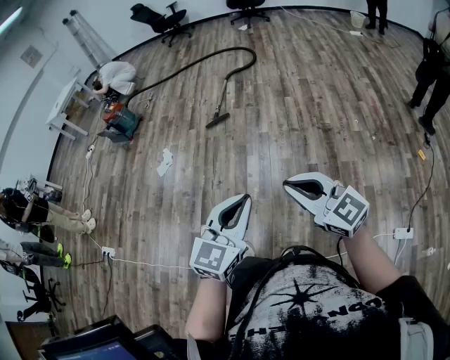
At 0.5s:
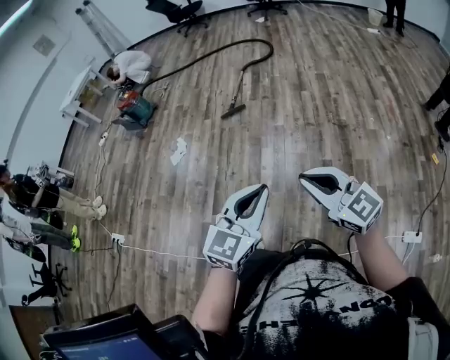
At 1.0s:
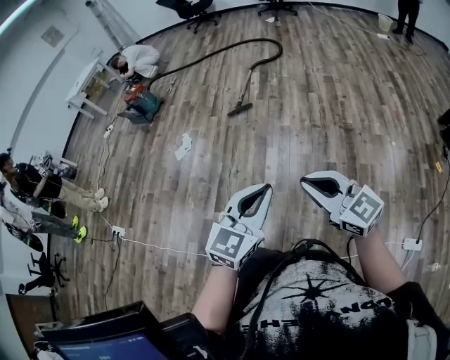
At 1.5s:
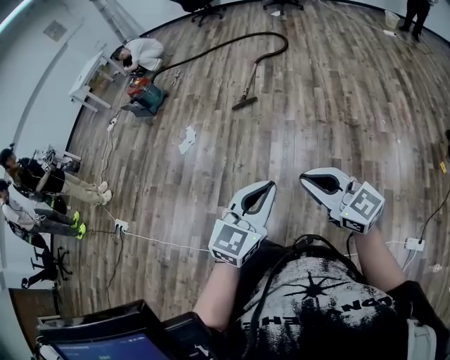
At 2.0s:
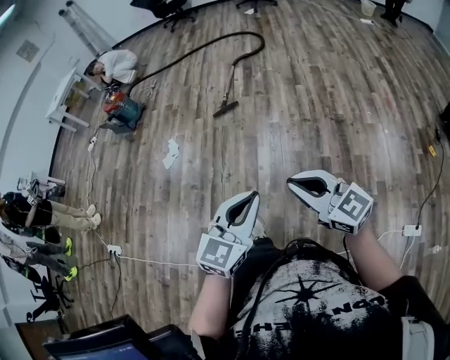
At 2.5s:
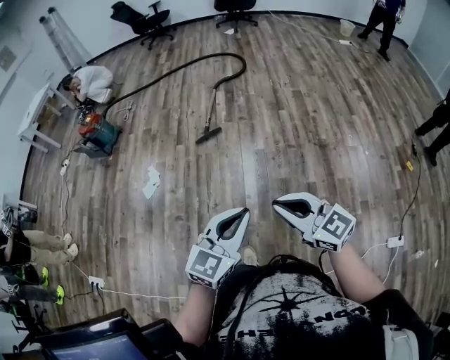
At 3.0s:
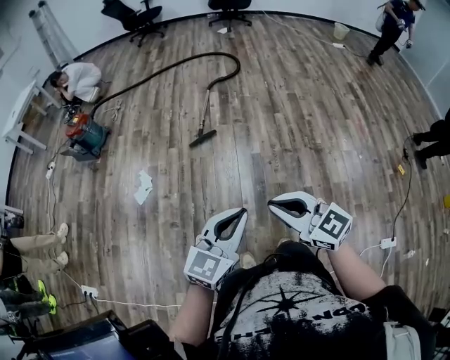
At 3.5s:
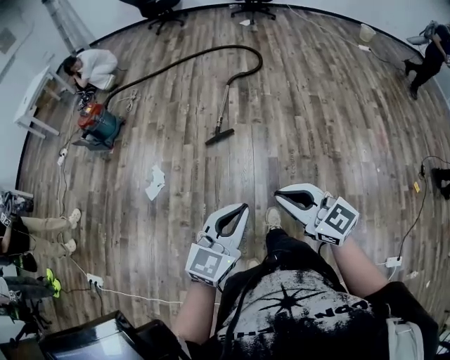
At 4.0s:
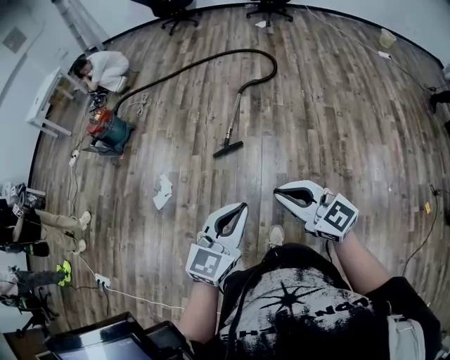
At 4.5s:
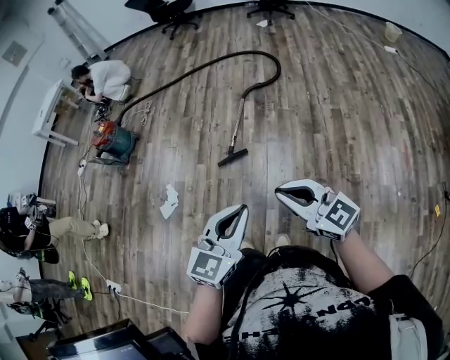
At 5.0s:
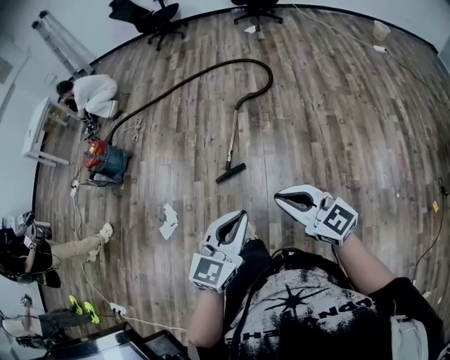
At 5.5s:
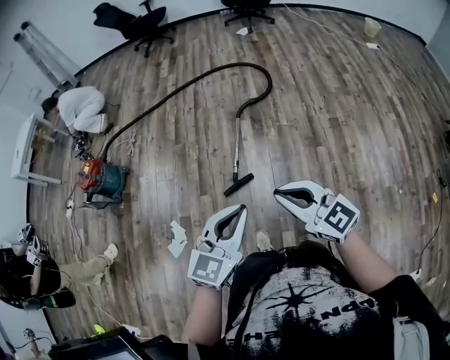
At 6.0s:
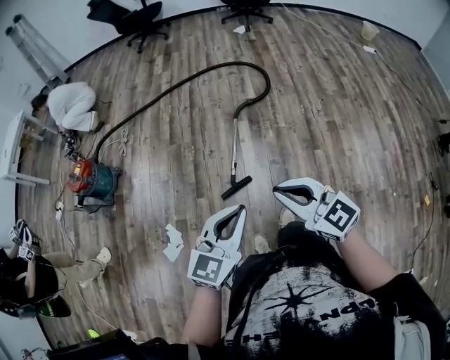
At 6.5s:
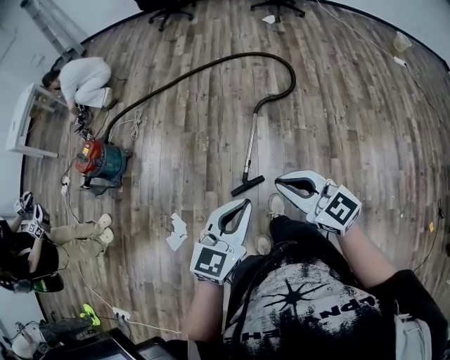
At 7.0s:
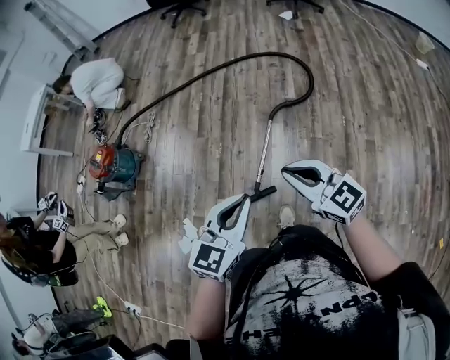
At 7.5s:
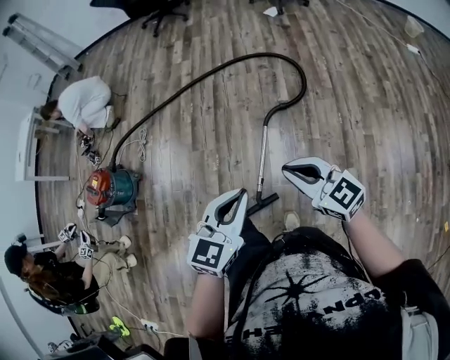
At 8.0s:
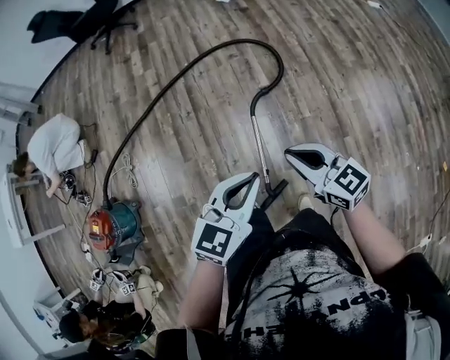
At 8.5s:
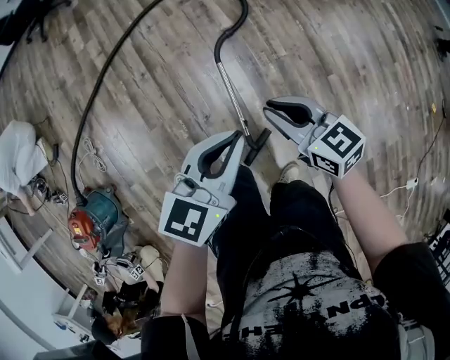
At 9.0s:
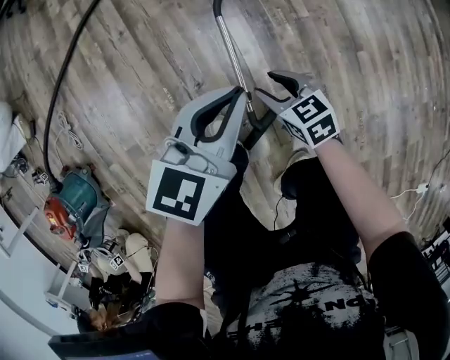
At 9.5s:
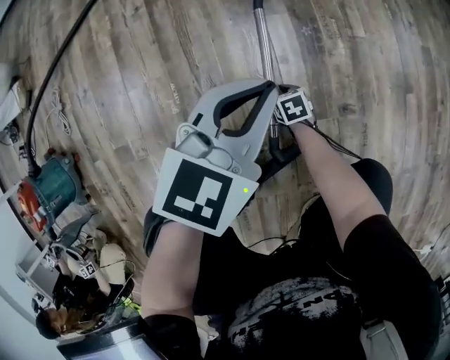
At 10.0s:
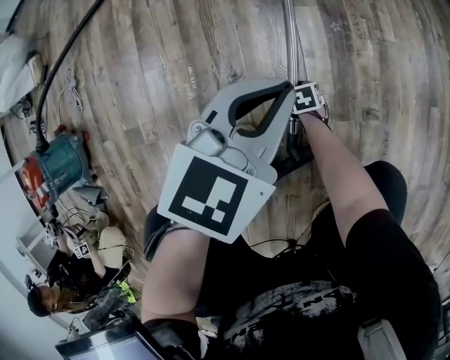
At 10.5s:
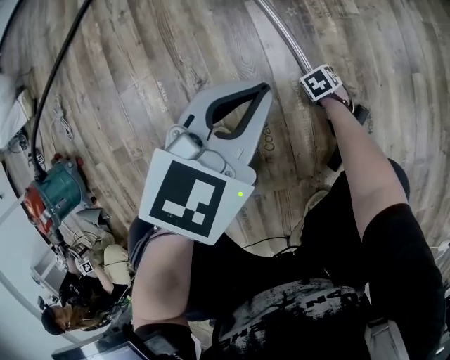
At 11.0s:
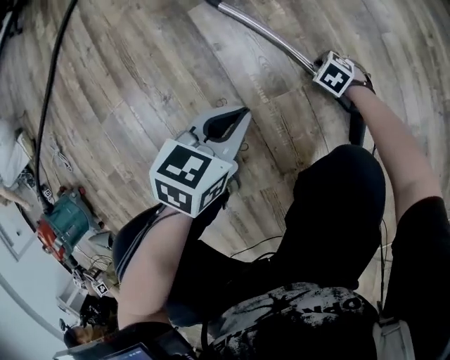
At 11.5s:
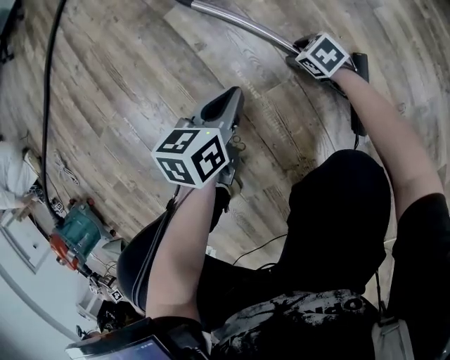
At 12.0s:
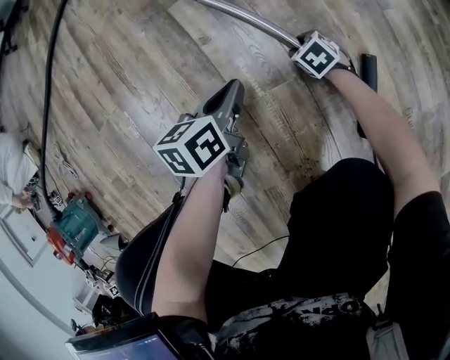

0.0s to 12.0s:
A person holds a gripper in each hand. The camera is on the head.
0.0s to 2.0s: Both grippers travel together forward, some 10 cm.
2.0s to 4.0s: The two grippers travel together, forward, about 50 cm.
4.0s to 6.0s: The grippers both shift forward by approximately 35 cm.
6.0s to 8.0s: The two grippers travel together, some 40 cm. The right gripper turns by about 20 degrees.
8.0s to 10.0s: The right gripper moves downward, about 90 cm, points its fingers roughly 50 degrees further downward, and opens up, while the left gripper travels downward by some 50 cm.
10.0s to 12.0s: The left gripper shifts roughly 20 cm downward, and swivels about 40 degrees. Meanwhile the right gripper moves roughly 25 cm, and closes, then reopens.

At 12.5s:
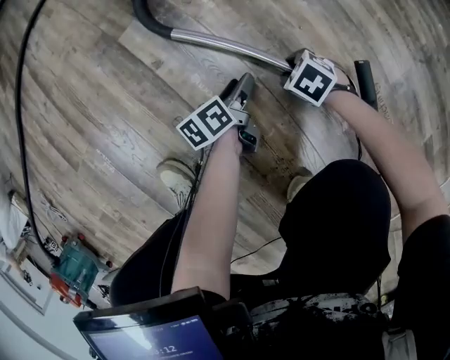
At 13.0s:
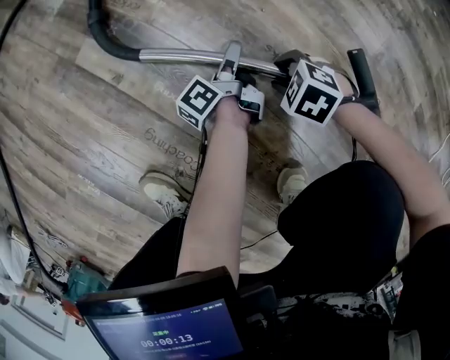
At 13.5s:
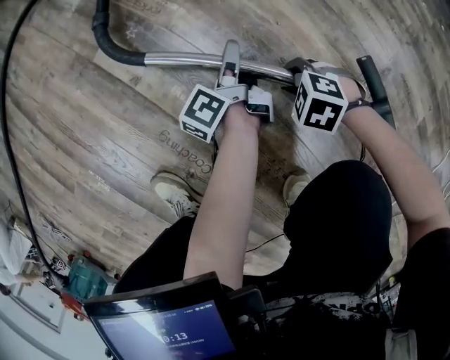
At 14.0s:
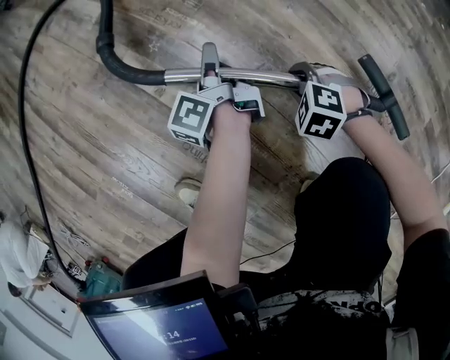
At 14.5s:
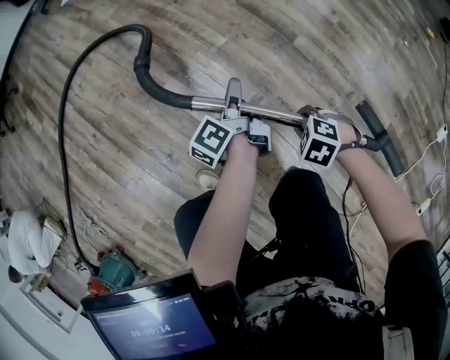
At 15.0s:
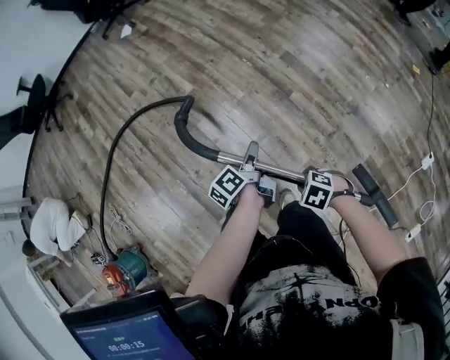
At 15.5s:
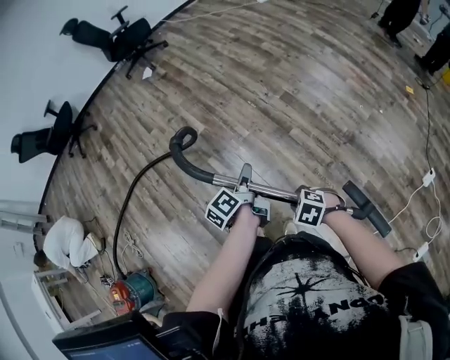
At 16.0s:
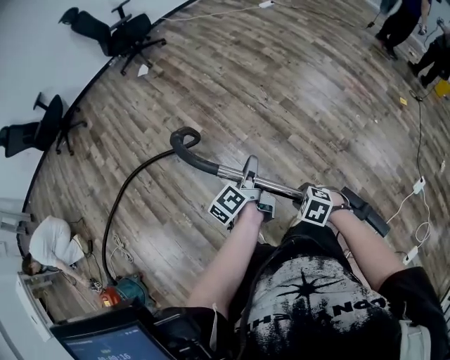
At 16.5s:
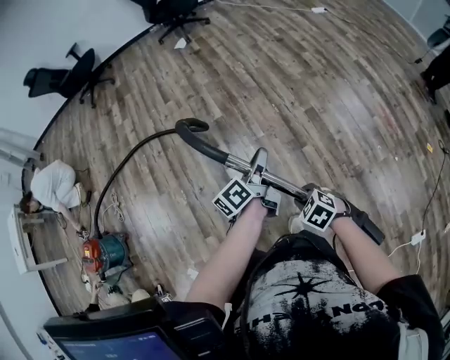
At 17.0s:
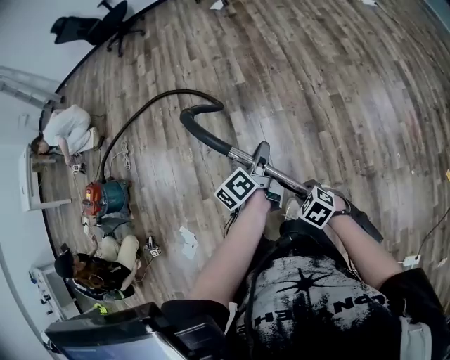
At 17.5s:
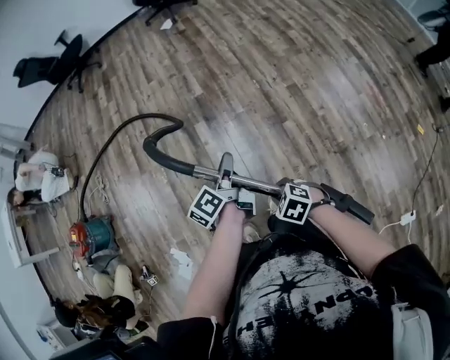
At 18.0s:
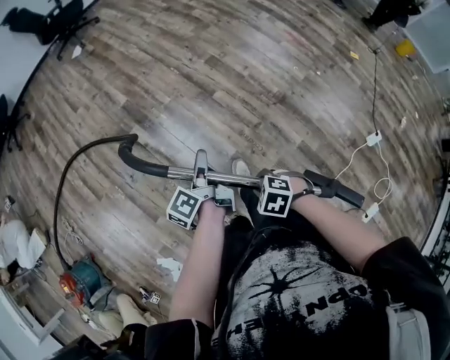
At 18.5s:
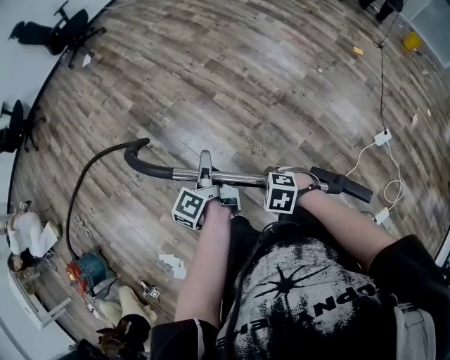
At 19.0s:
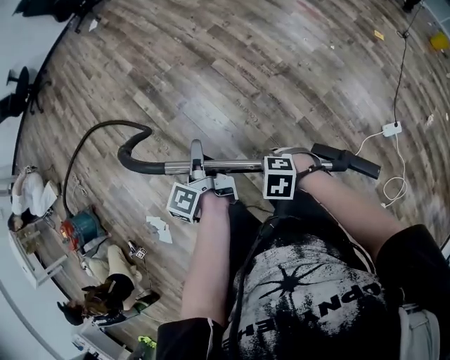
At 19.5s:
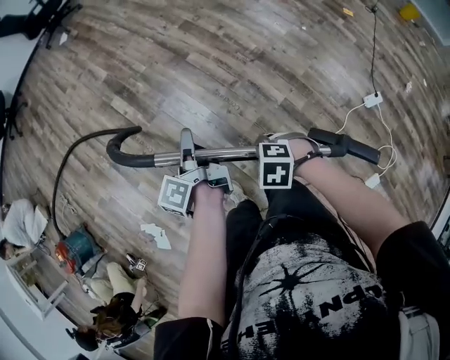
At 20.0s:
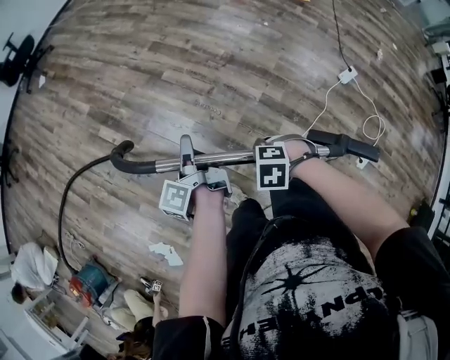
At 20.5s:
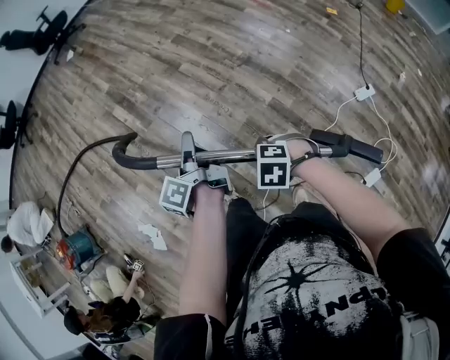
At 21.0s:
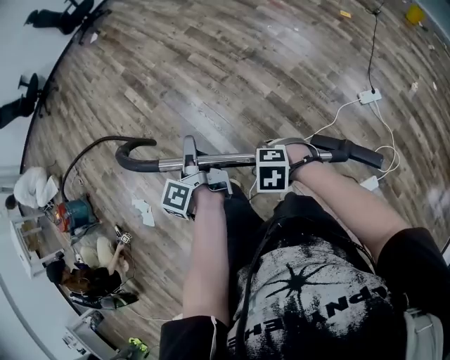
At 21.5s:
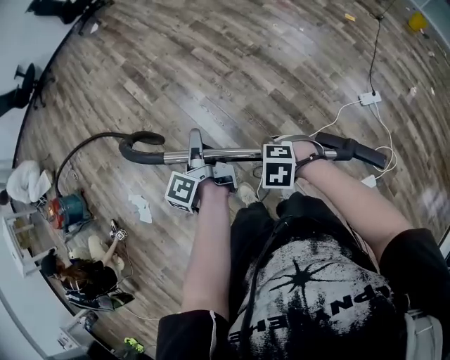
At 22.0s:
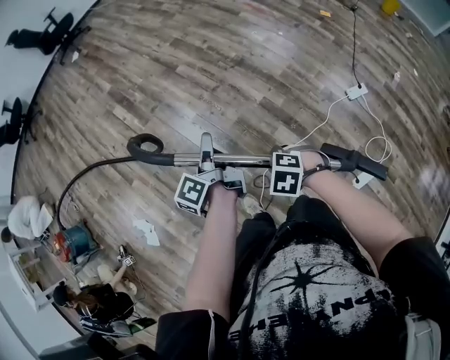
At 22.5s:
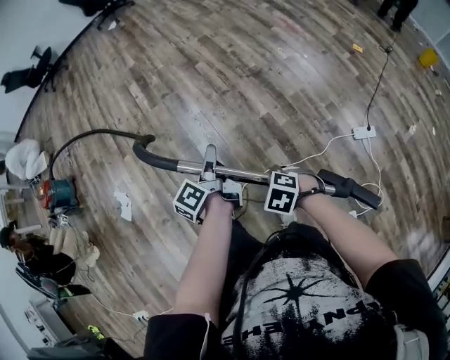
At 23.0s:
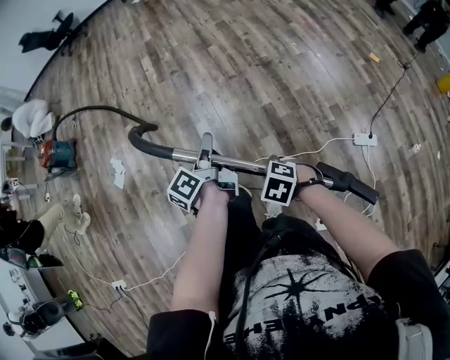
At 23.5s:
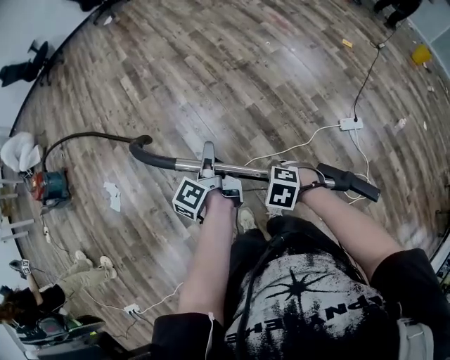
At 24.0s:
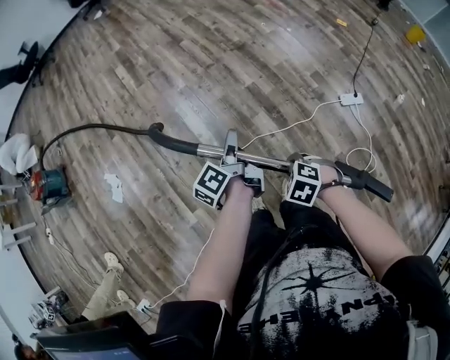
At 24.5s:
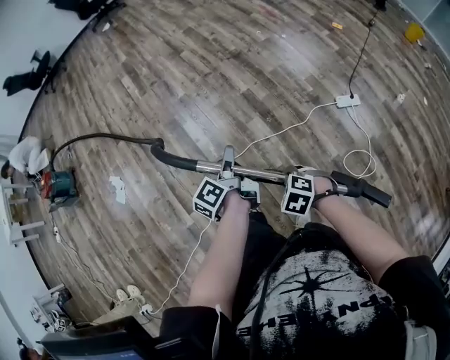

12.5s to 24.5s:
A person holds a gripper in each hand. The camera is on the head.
12.5s to 14.5s: Both grippers travel together upward, approximately 35 cm. The right gripper closes up, while the left gripper turns by approximately 30 degrees, and closes its fingers.
14.5s to 16.5s: The grippers both shift upward by roughly 40 cm.
16.5s to 18.5s: The right gripper ends up roughly 35 cm from where it was, while the left gripper ends up about 35 cm from where it was.
18.5s to 20.5s: The right gripper shifts by some 25 cm, while the left gripper shifts by approximately 25 cm.
20.5s to 22.5s: The left gripper ends up approximately 25 cm from where it was. The right gripper moves roughly 25 cm.
22.5s to 24.5s: The right gripper moves about 30 cm. Meanwhile the left gripper shifts by approximately 30 cm.

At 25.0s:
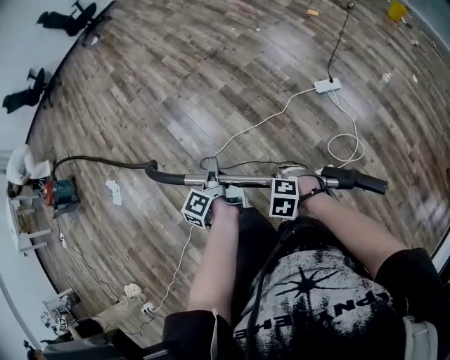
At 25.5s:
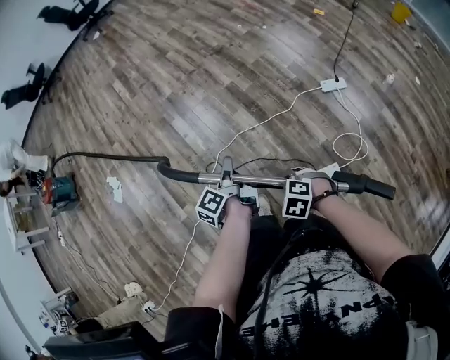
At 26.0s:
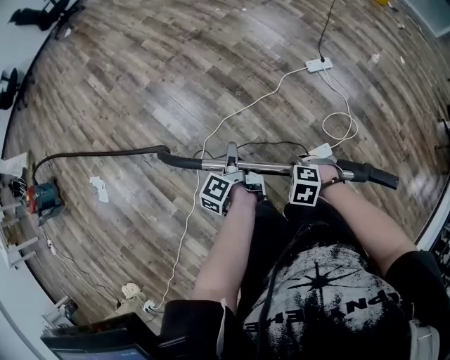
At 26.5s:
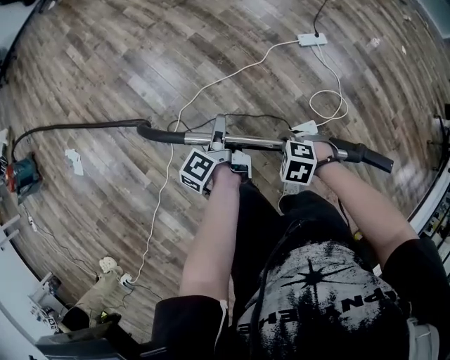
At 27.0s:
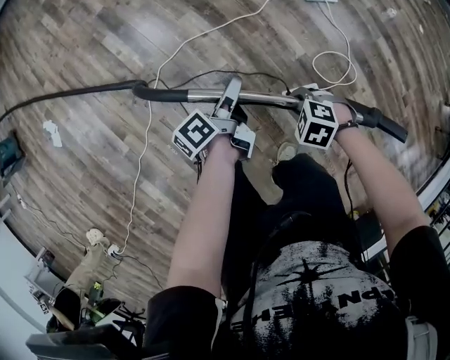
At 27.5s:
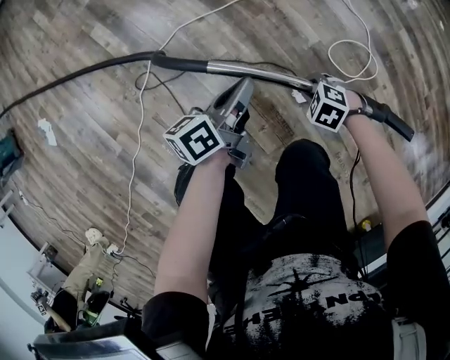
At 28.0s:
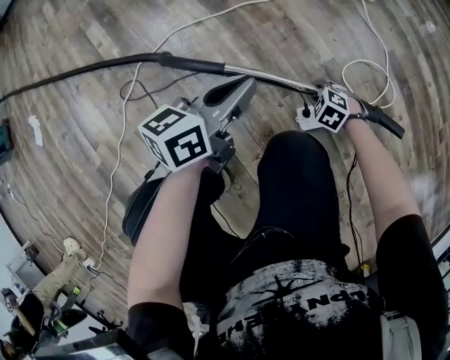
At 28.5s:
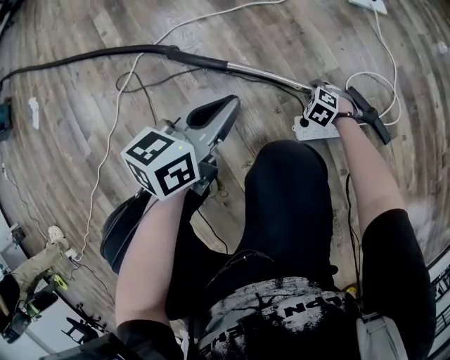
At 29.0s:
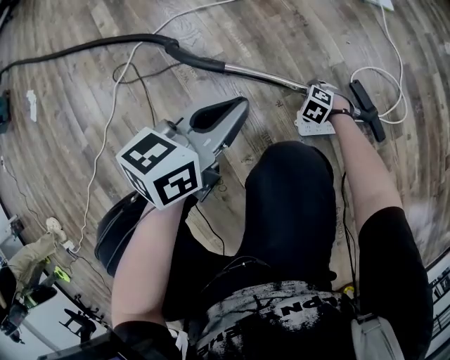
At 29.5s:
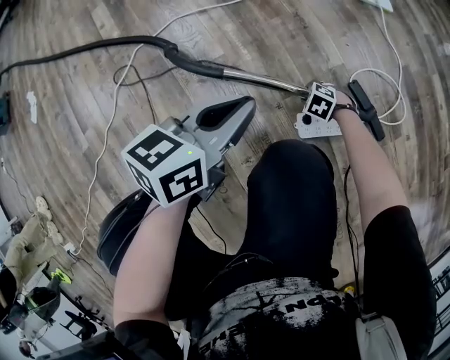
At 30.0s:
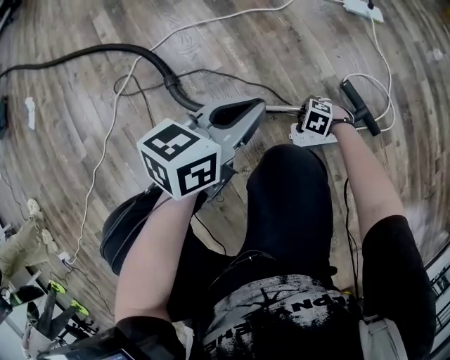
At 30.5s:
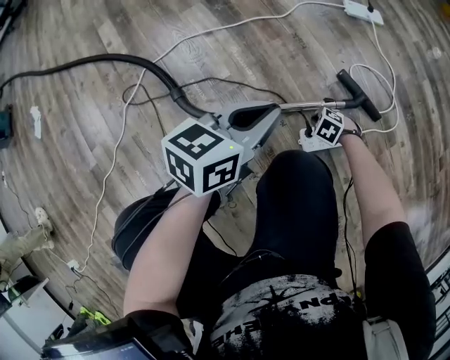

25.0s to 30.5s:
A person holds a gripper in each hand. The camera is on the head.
25.0s to 27.0s: The two grippers go about 20 cm downward. The left gripper changes its angle by about 30 degrees, and opens its fingers.
27.0s to 28.5s: The left gripper heads downward, covering roughly 20 cm, rotates around the line of its fingers by some 50 degrees, clockwise from behind, and closes its fingers. Meanwhile the right gripper travels downward by some 50 cm.
28.5s to 30.5s: The right gripper ends up some 5 cm from where it was.
